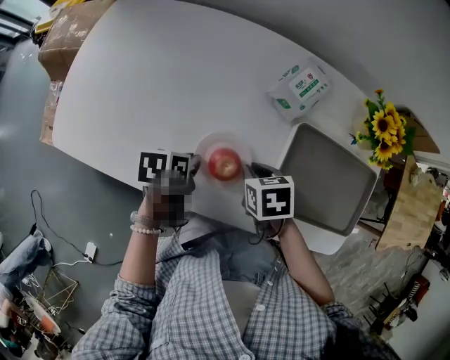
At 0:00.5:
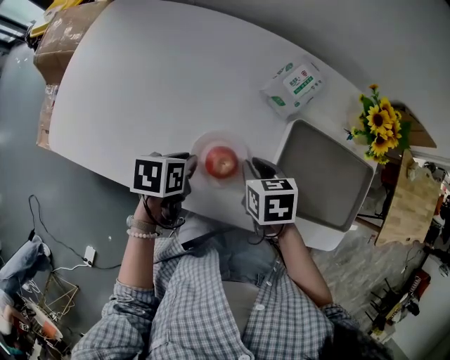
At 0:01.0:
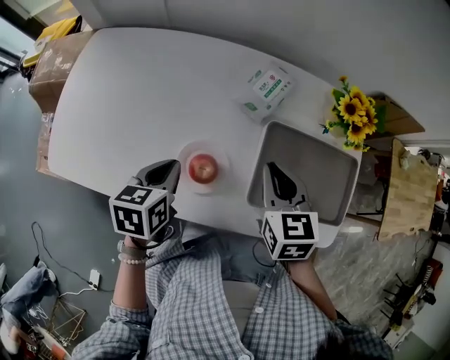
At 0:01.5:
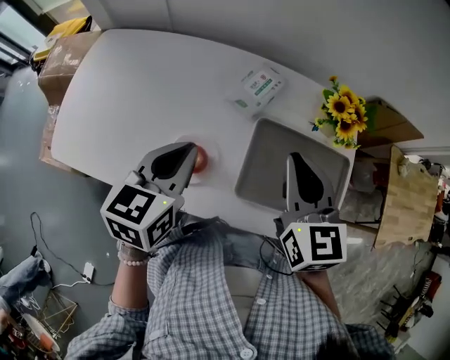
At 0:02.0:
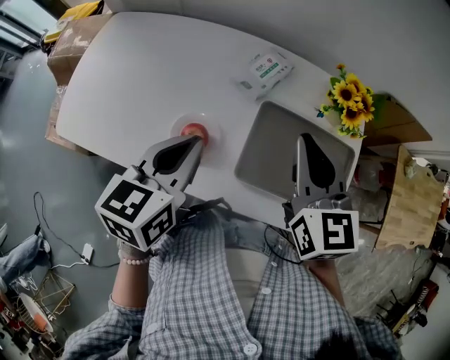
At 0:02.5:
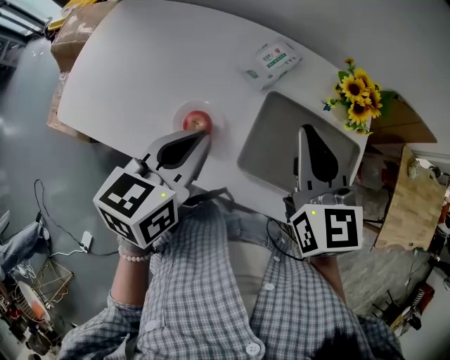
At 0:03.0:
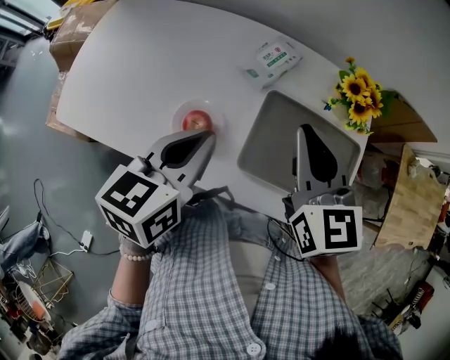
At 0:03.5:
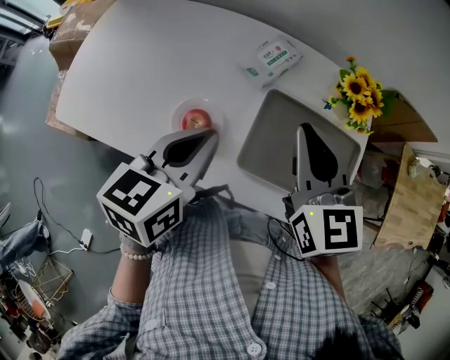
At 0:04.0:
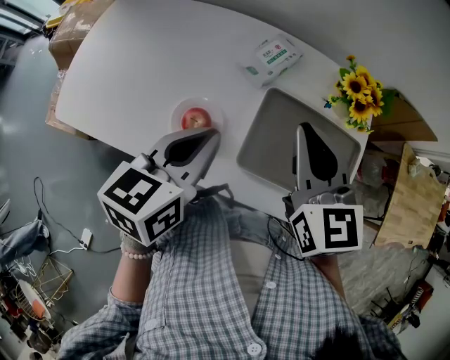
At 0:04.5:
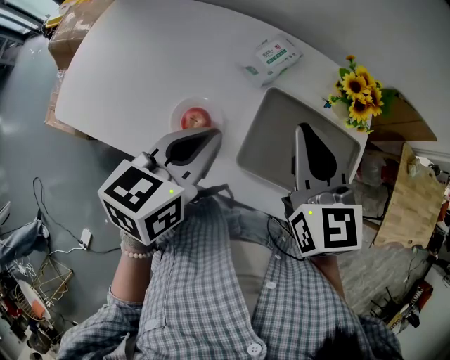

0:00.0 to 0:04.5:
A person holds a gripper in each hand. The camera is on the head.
0:00.0 to 0:02.0: The two grippers go some 30 cm upward and to the right. The left gripper points its fingers approximately 30 degrees further upward. The right gripper angles its fingers upward, by approximately 50 degrees.
0:02.0 to 0:04.5: The grippers move only a little.

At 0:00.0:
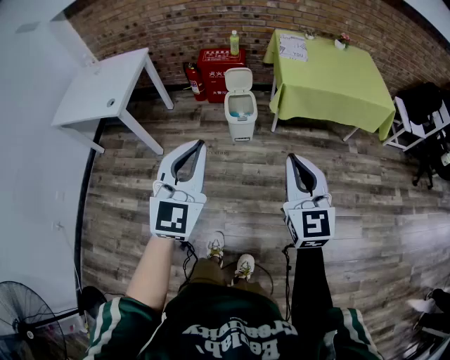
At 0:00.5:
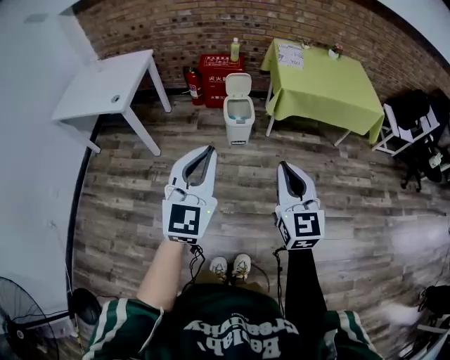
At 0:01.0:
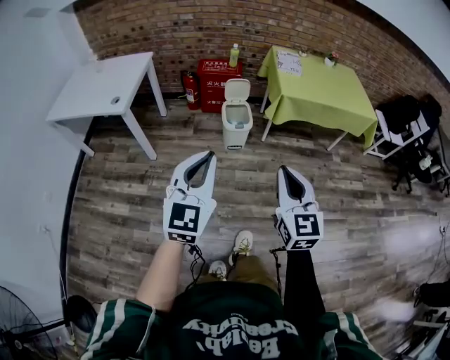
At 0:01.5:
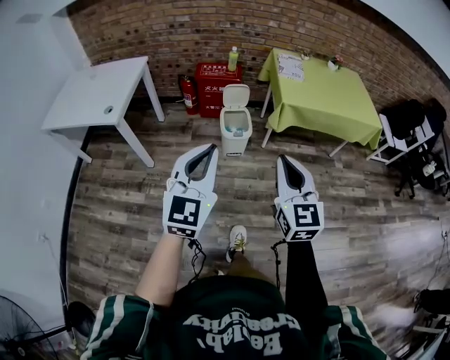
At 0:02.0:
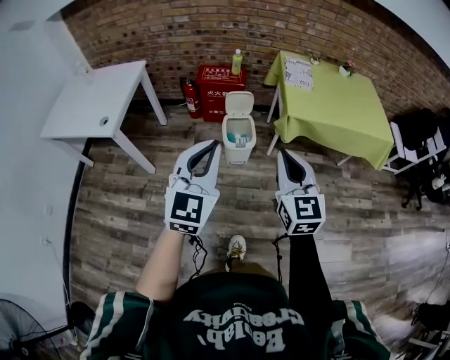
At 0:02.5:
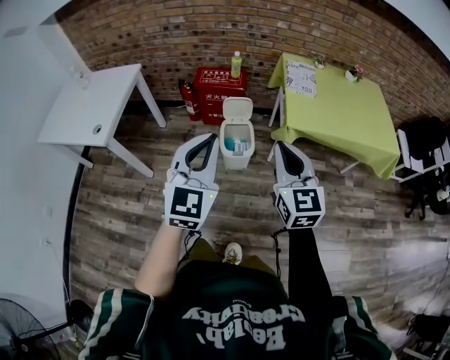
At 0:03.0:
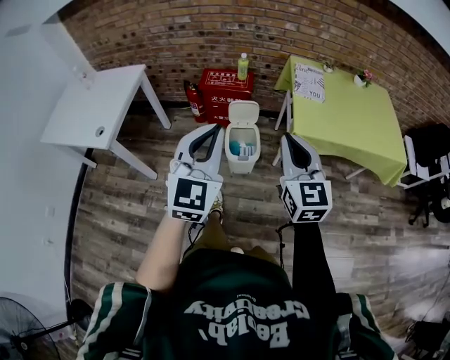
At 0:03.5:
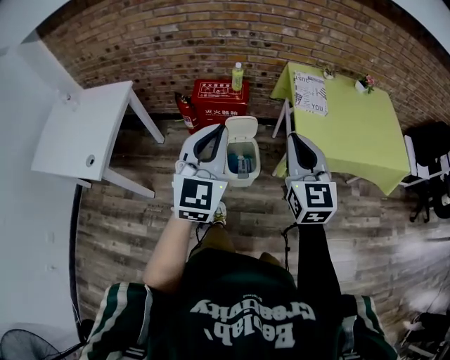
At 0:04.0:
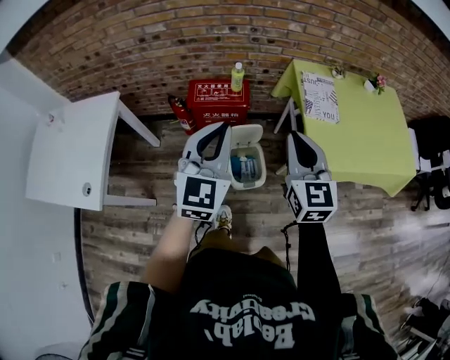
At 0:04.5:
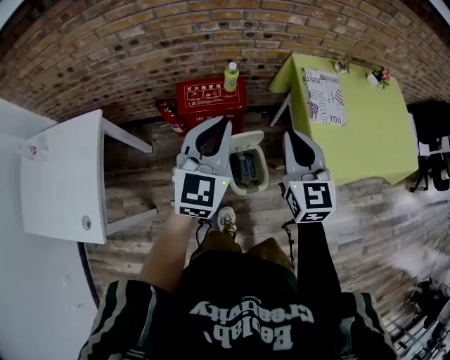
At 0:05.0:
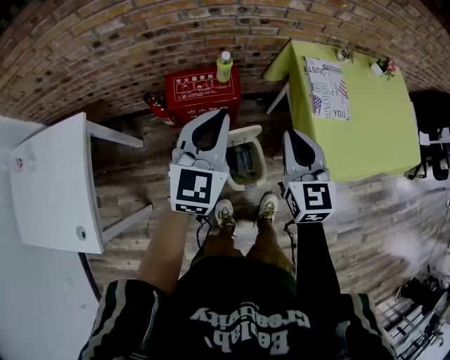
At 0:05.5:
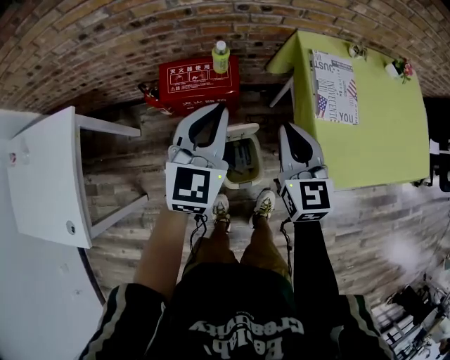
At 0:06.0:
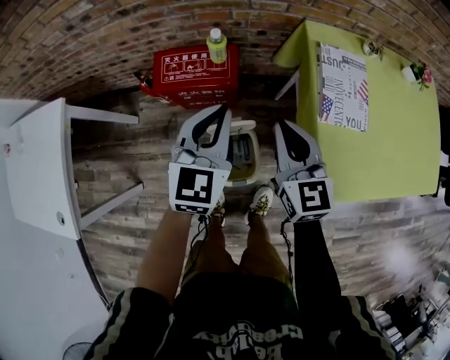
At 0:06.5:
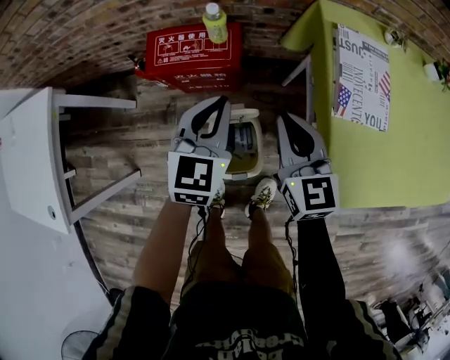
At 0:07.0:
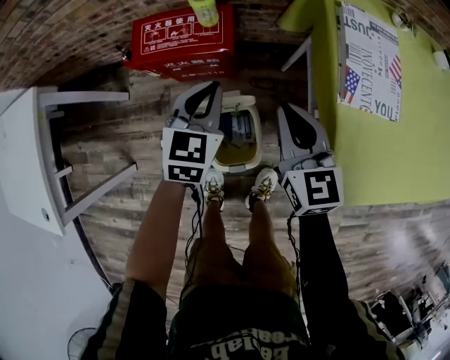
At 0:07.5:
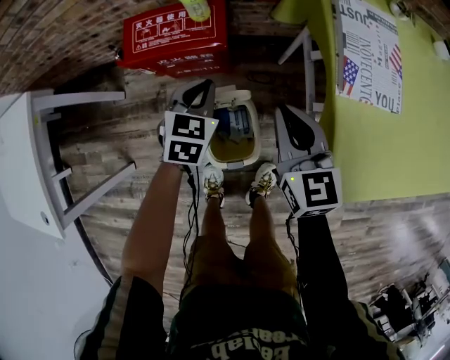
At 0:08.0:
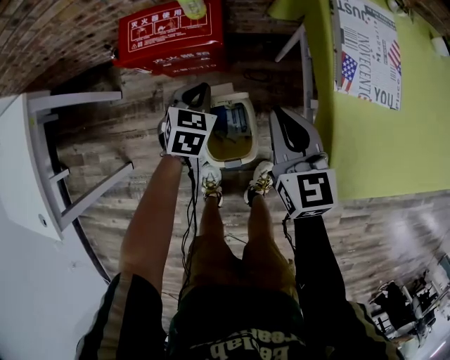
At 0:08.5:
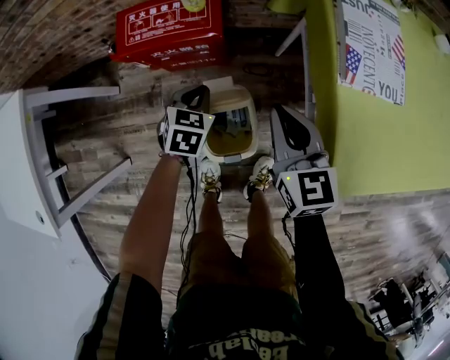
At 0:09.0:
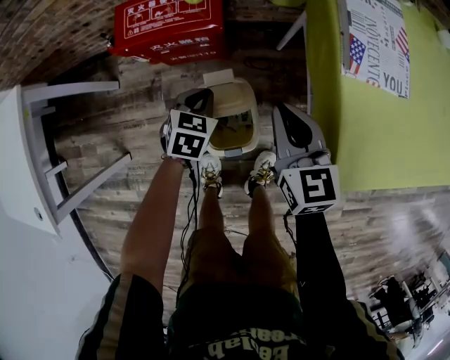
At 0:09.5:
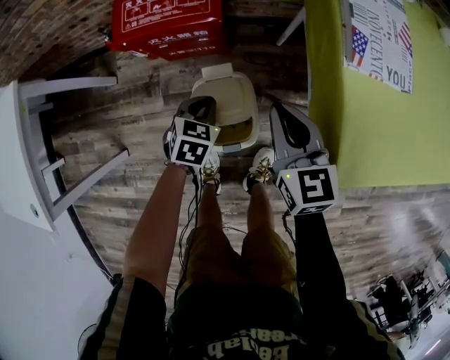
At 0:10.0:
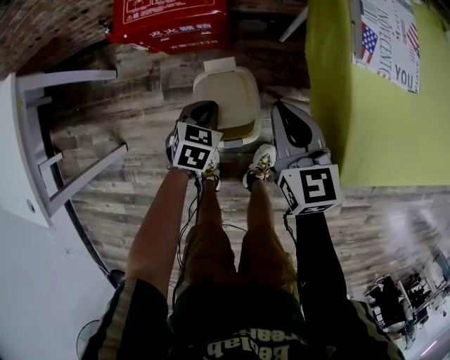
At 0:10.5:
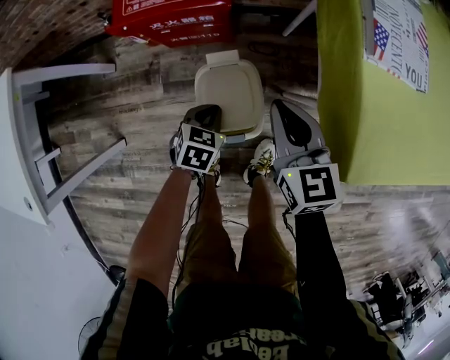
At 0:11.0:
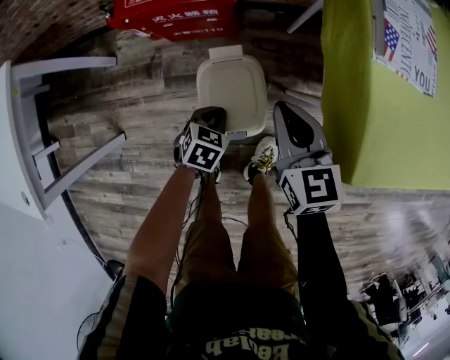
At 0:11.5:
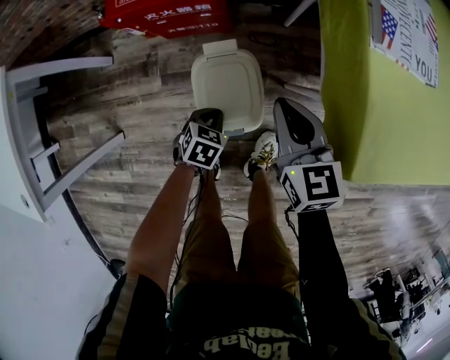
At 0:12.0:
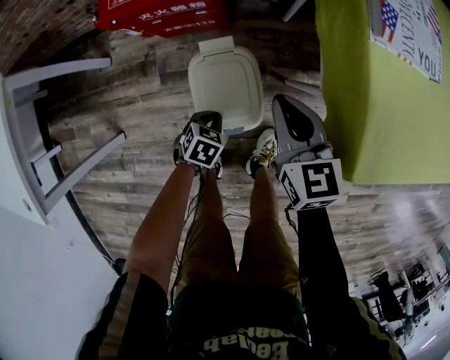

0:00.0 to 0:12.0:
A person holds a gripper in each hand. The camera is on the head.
0:00.0 to 0:02.0: The left gripper shifts roughly 15 cm forward. Meanwhile the right gripper shifts some 20 cm forward and to the left.
0:02.0 to 0:04.0: The pair of grippers is taken forward, roughly 40 cm.
0:04.0 to 0:06.0: Both grippers move forward and downward, roughly 30 cm.
0:06.0 to 0:08.0: The left gripper moves downward, approximately 30 cm, and turns by about 30 degrees, while the right gripper goes roughly 15 cm downward.
0:08.0 to 0:10.0: The left gripper shifts some 15 cm backward and downward. Meanwhile the right gripper goes roughly 5 cm backward.
0:10.0 to 0:12.0: The right gripper heads downward, covering roughly 5 cm; the left gripper travels downward and backward by roughly 15 cm.

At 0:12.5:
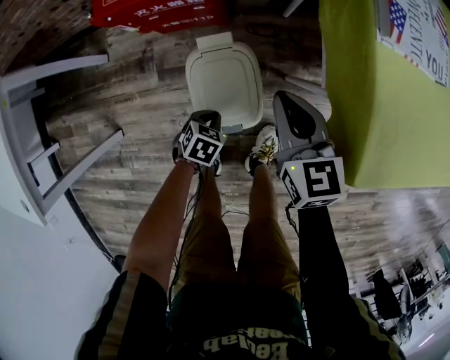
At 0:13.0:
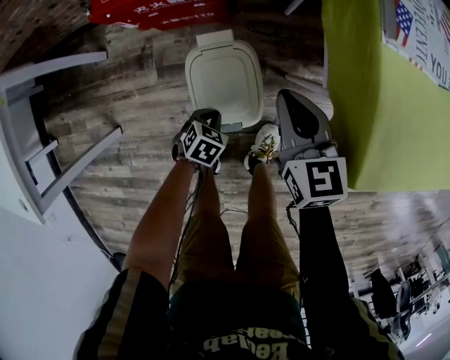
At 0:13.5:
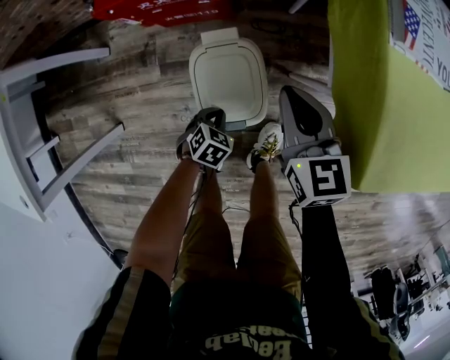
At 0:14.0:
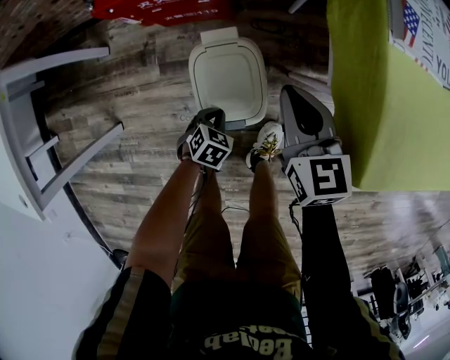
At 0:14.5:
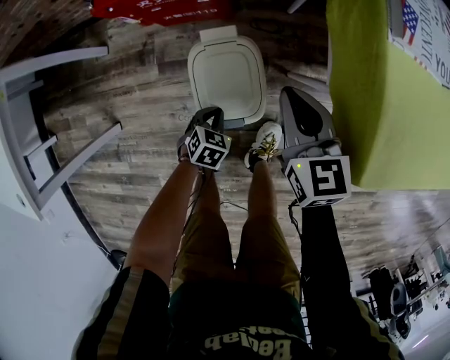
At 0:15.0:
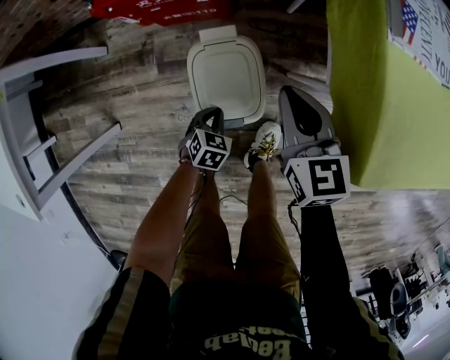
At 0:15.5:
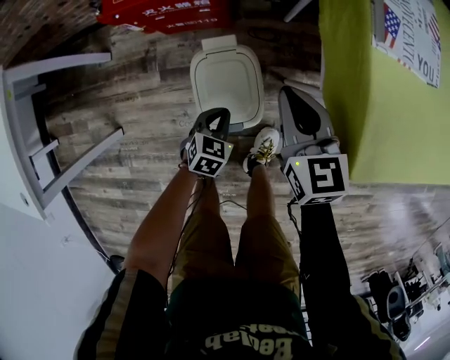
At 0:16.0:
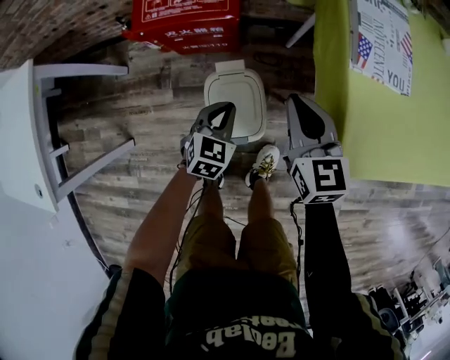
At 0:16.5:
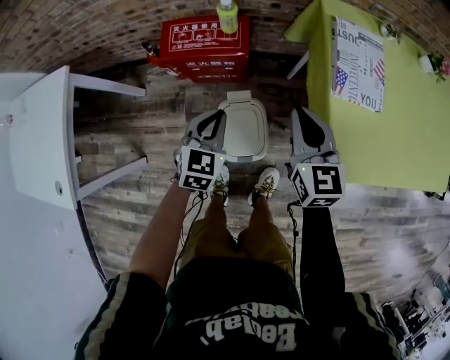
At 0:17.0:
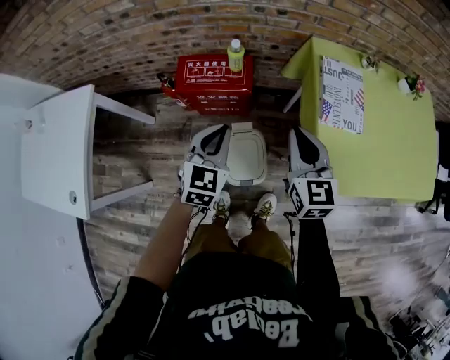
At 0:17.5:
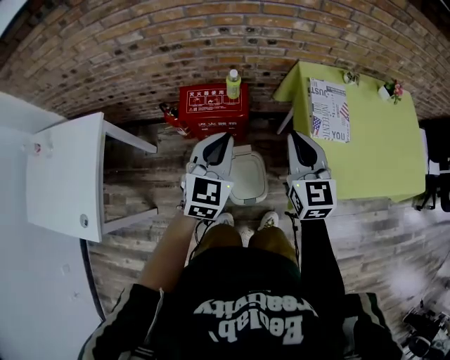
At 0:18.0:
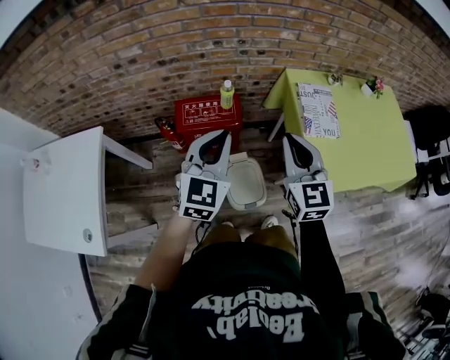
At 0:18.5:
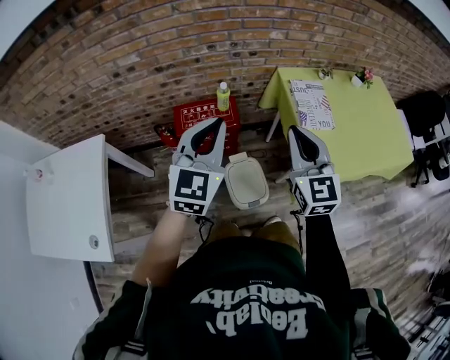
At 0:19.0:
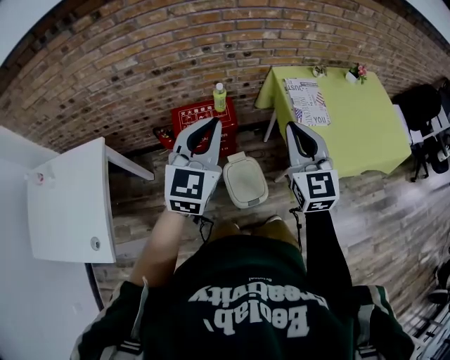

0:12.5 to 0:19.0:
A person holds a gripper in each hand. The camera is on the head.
0:12.5 to 0:14.5: The grippers stay close to where they were, moving slightly.
0:14.5 to 0:17.0: The left gripper travels upward by approximately 50 cm, and tips its fingers upward by roughly 40 degrees. Meanwhile the right gripper goes some 30 cm upward.
0:17.0 to 0:19.0: The left gripper is displaced upward by about 25 cm, and rotates about 20 degrees; the right gripper shifts roughly 20 cm upward and backward, and rotates approximately 20 degrees.

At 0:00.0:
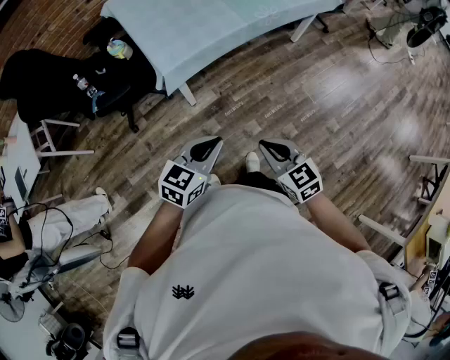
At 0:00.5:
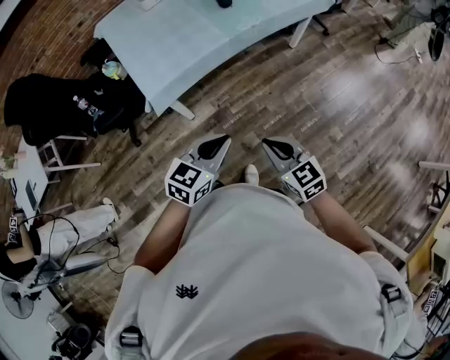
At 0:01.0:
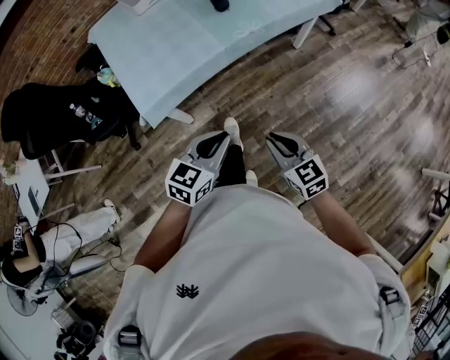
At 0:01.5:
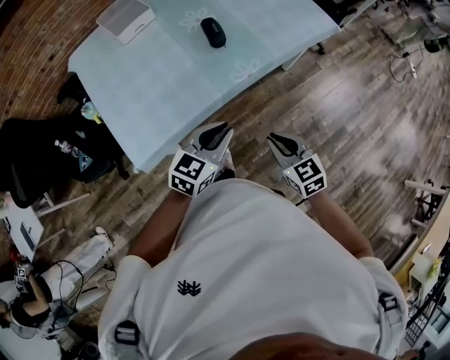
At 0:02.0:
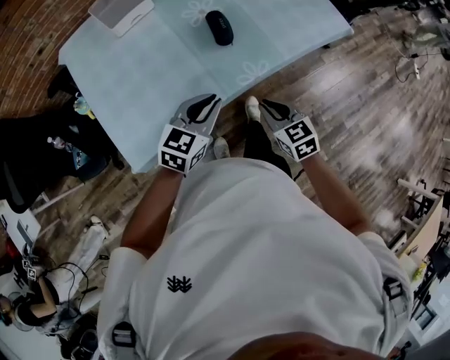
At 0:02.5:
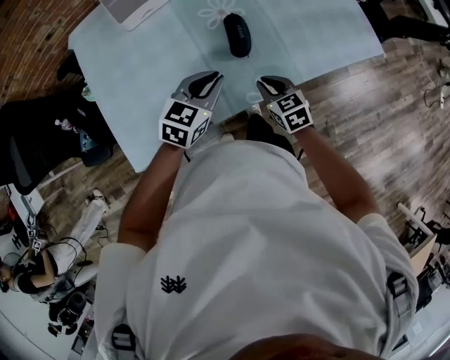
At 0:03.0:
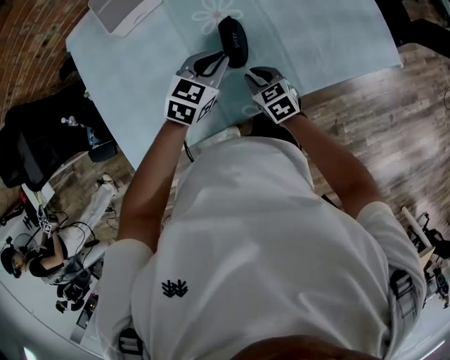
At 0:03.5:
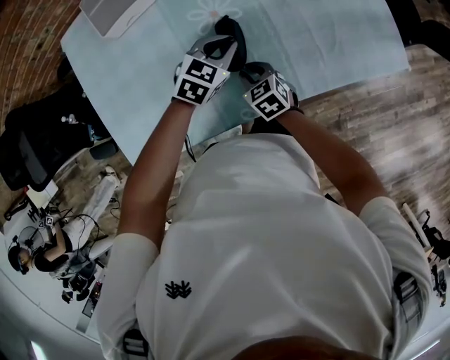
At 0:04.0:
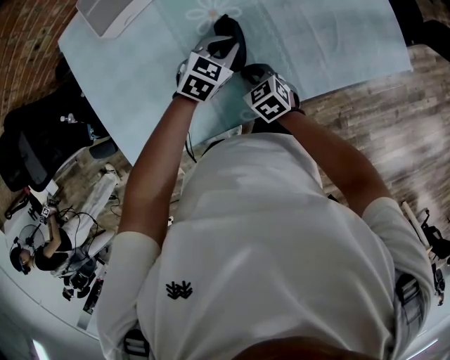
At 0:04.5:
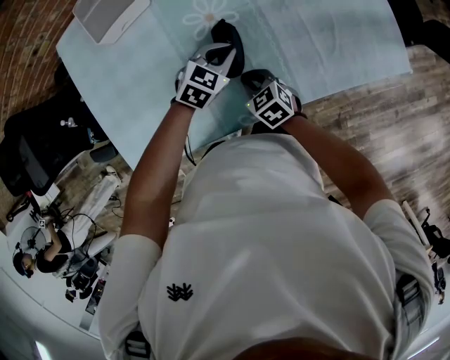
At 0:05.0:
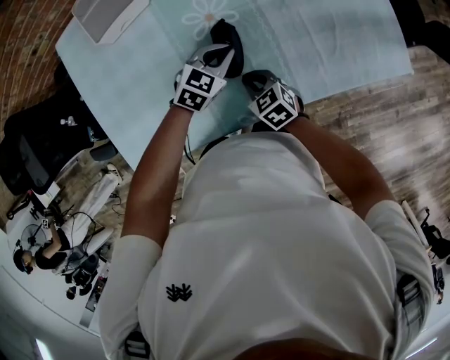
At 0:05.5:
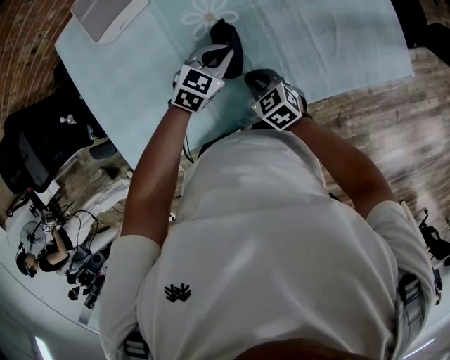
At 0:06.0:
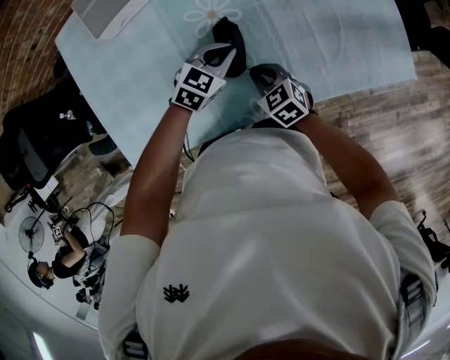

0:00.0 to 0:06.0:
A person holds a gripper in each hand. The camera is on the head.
0:00.0 to 0:02.0: The two grippers travel together, forward, some 60 cm.
0:02.0 to 0:04.0: The grippers both shift forward and downward by approximately 30 cm. The right gripper rotates some 20 degrees, while the left gripper turns by about 20 degrees.
0:04.0 to 0:06.0: The grippers make only small movements.
